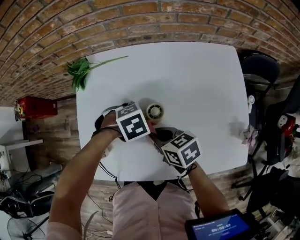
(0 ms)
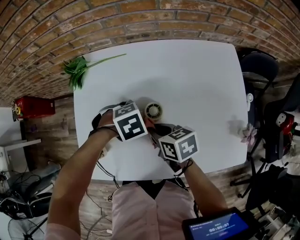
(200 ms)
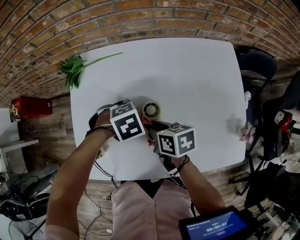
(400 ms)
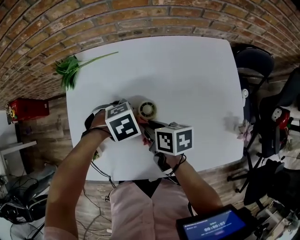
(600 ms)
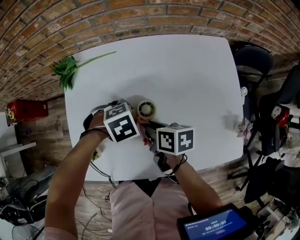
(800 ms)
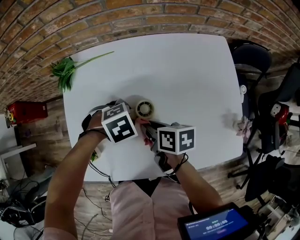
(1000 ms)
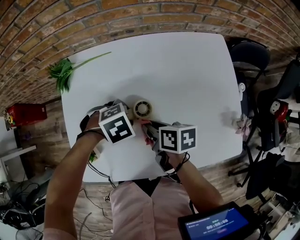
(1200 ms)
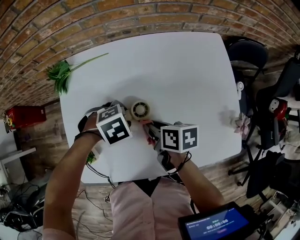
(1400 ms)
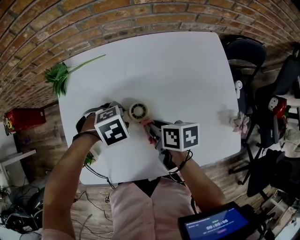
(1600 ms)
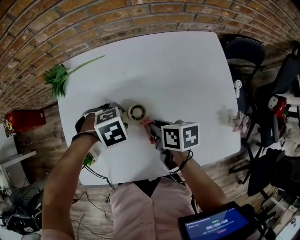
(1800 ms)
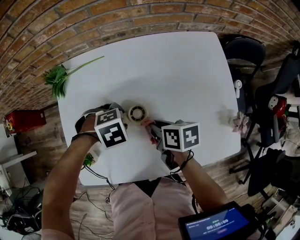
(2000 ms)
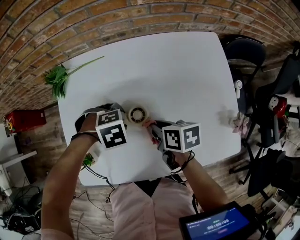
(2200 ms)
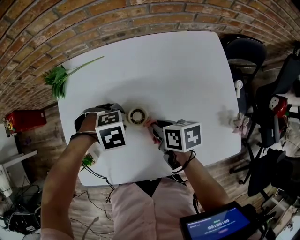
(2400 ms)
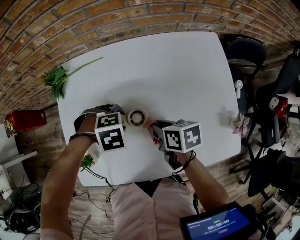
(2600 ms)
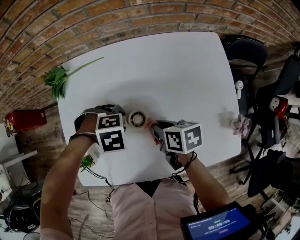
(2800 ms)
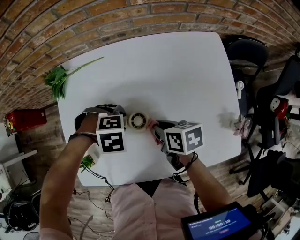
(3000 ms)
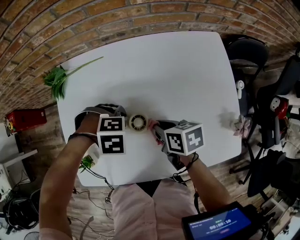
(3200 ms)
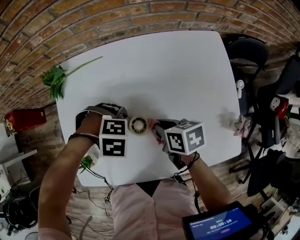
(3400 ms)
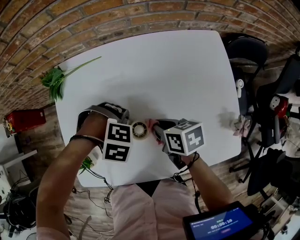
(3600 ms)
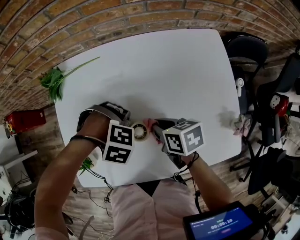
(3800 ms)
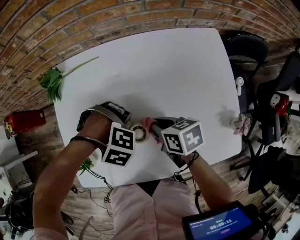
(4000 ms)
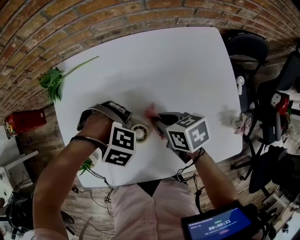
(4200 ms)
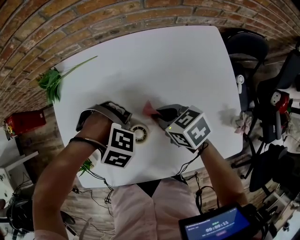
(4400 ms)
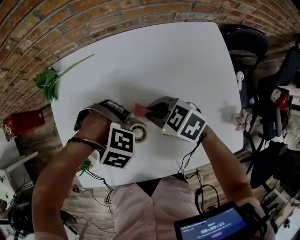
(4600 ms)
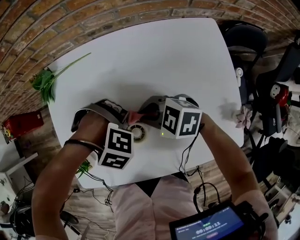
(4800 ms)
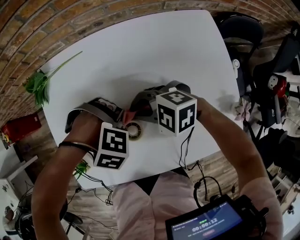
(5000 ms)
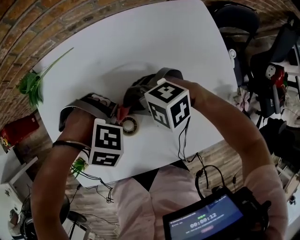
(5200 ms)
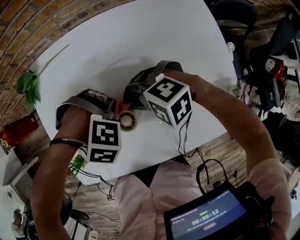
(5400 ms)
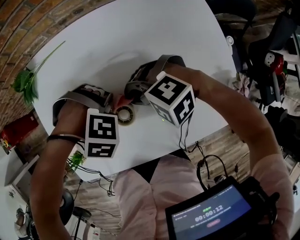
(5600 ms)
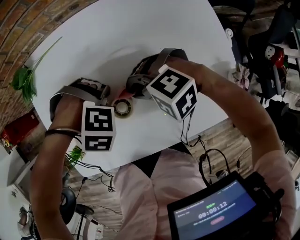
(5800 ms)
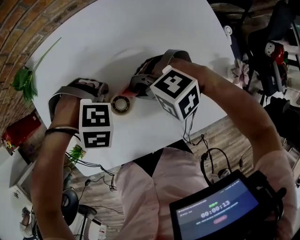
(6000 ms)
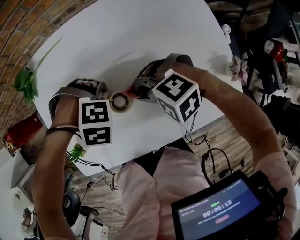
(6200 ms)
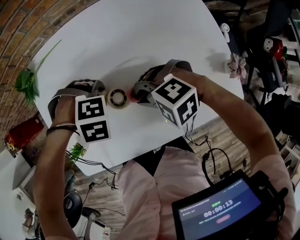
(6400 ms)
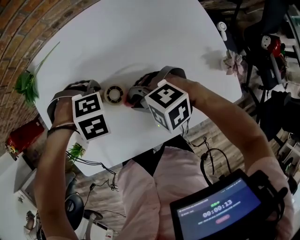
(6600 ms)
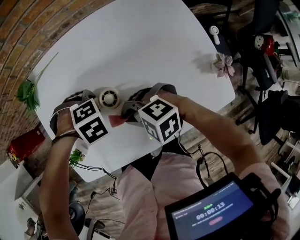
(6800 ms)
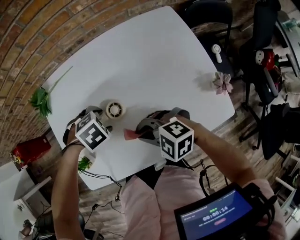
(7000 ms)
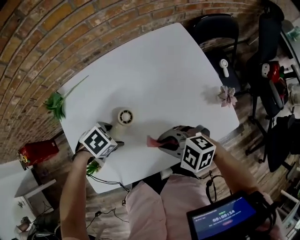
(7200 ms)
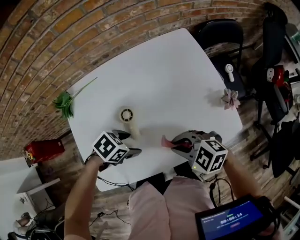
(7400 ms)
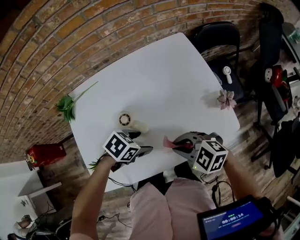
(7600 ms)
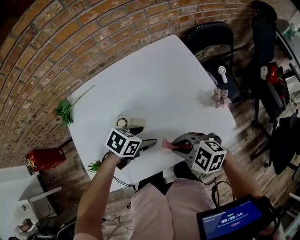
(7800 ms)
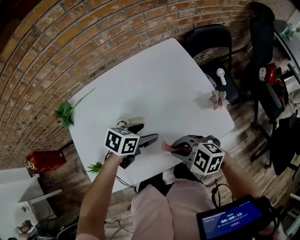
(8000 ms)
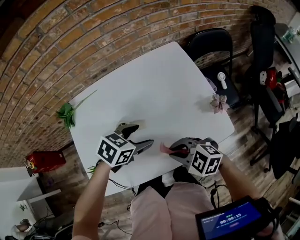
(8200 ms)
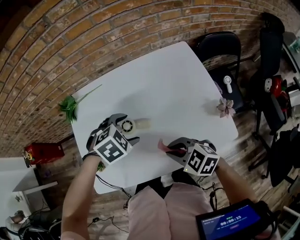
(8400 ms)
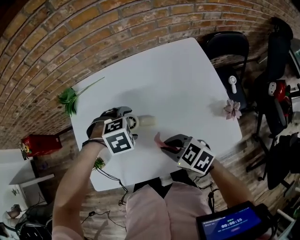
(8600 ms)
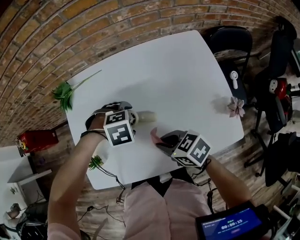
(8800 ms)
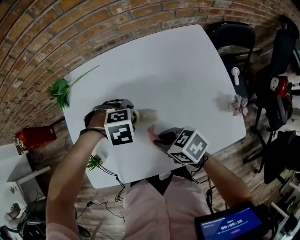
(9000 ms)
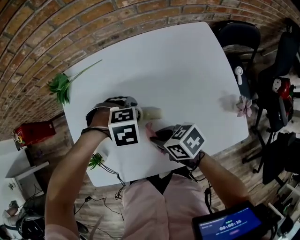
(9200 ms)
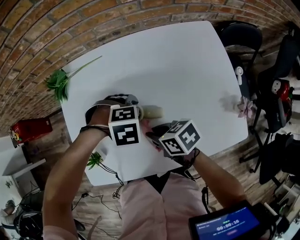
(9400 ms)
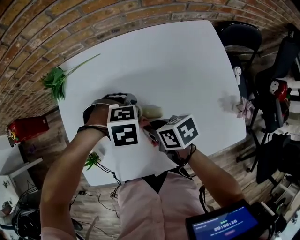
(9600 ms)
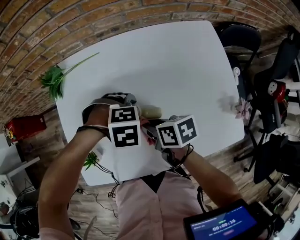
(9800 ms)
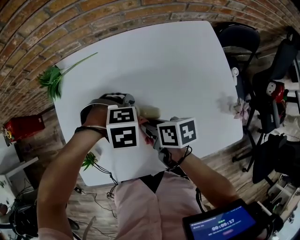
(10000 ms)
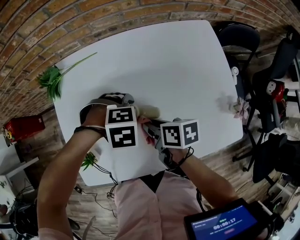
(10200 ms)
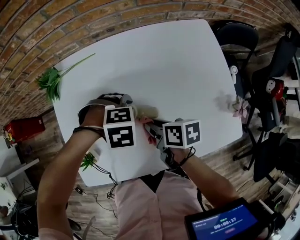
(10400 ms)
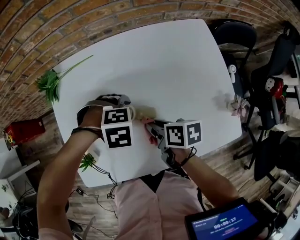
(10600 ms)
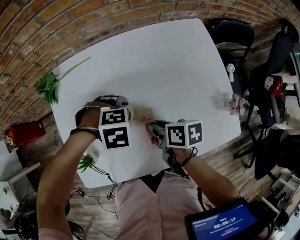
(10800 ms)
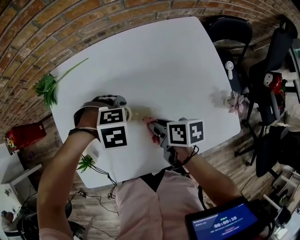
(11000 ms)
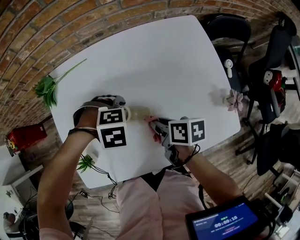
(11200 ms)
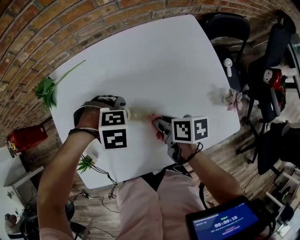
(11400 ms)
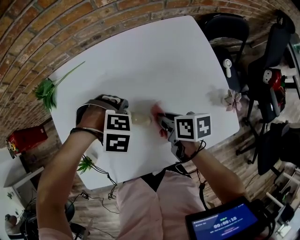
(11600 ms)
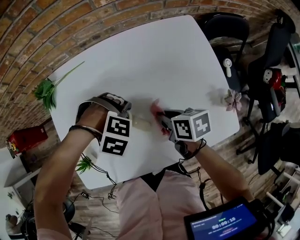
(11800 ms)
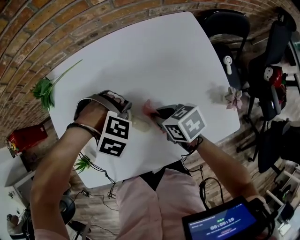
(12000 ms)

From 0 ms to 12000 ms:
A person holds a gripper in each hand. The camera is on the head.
From 0 ms to 1600 ms: The right gripper changes place by about 5 cm, and rotates some 30 degrees.
From 1600 ms to 3000 ms: There are only small adjustments of the grippers.
From 3000 ms to 4400 ms: The left gripper swivels approximately 30 degrees; the right gripper swivels approximately 30 degrees.
From 4400 ms to 6000 ms: The right gripper ends up approximately 5 cm from where it was, and twists roughly 70 degrees counterclockwise, seen from behind.
From 6000 ms to 7600 ms: The right gripper shifts by roughly 15 cm, and turns by approximately 40 degrees. The left gripper shifts by about 10 cm, rotates around the line of its fingers by about 60 degrees, counterclockwise from behind, and opens its fingers.
From 7600 ms to 9000 ms: The right gripper ends up roughly 10 cm from where it was, and rotates roughly 40 degrees, while the left gripper moves roughly 5 cm upward and comes back, and swivels roughly 50 degrees.
From 9000 ms to 10400 ms: The right gripper ends up roughly 5 cm from where it was, and changes its angle by about 40 degrees.
From 10400 ms to 12000 ms: The right gripper shifts by approximately 5 cm, and turns by some 30 degrees; the left gripper changes its angle by roughly 30 degrees.

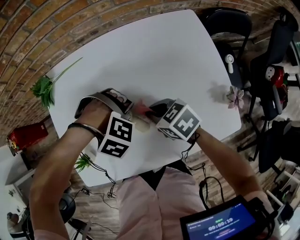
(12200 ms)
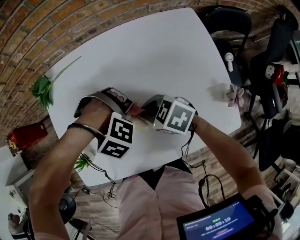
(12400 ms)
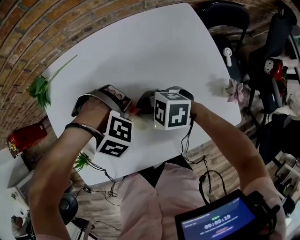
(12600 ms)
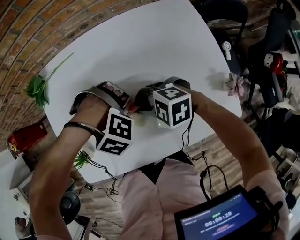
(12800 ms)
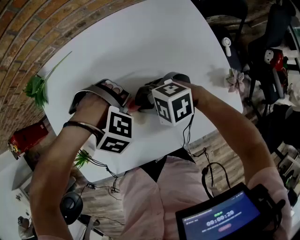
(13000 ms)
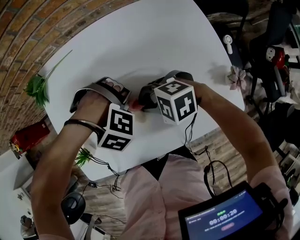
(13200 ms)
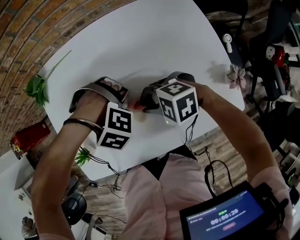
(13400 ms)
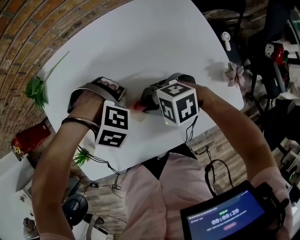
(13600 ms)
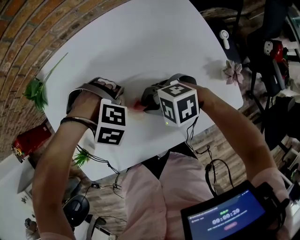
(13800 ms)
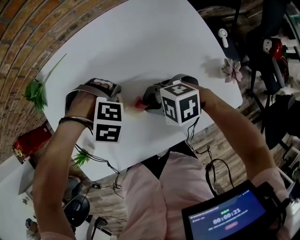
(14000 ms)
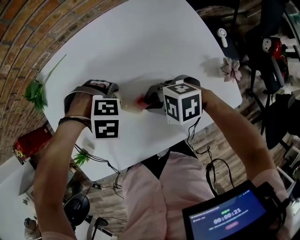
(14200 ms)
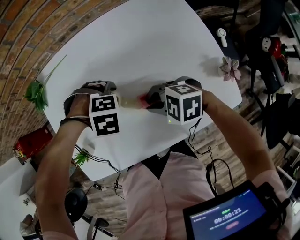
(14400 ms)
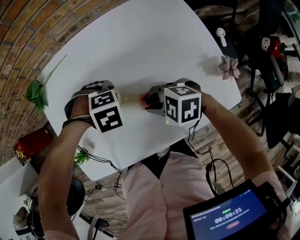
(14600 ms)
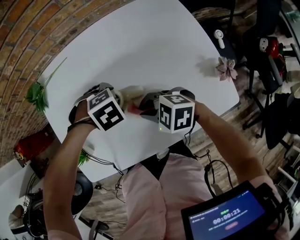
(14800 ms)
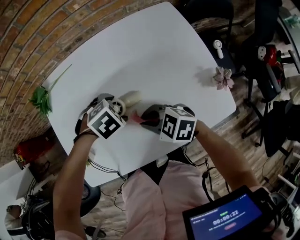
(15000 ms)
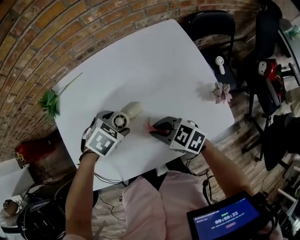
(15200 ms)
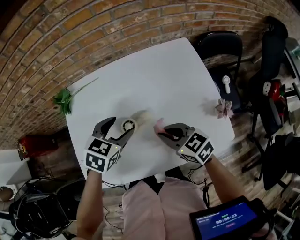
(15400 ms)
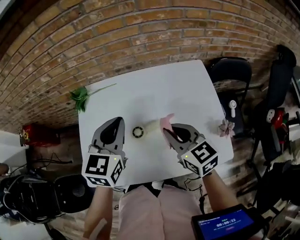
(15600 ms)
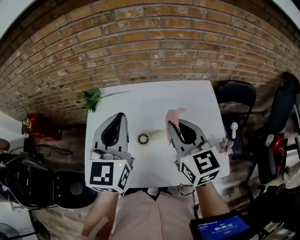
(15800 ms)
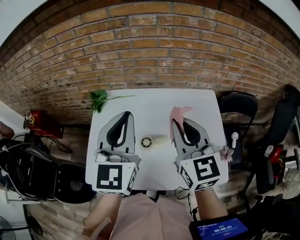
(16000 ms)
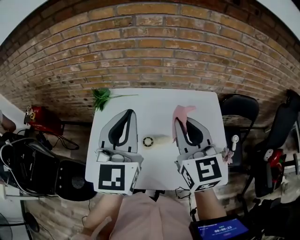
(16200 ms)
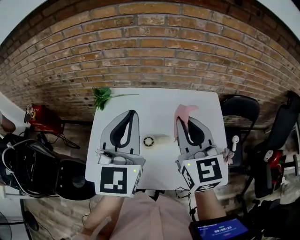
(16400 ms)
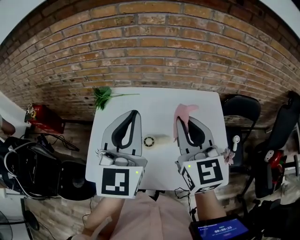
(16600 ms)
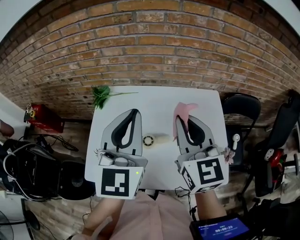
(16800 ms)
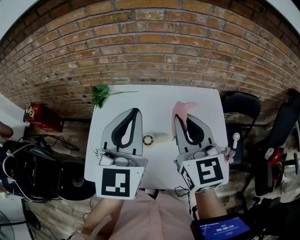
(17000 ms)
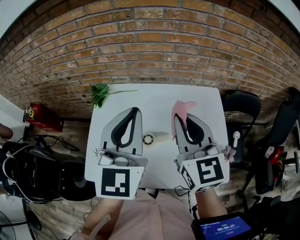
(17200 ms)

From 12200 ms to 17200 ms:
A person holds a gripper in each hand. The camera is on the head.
From 12200 ms to 13800 ms: The right gripper changes place by approximately 5 cm, and rolls counterclockwise, seen from behind, by about 50 degrees.
From 13800 ms to 15600 ms: The right gripper goes some 15 cm upward, and changes its angle by some 60 degrees; the left gripper travels upward by about 25 cm, tilts its fingers some 70 degrees upward, and closes its fingers.
From 15600 ms to 17200 ms: Both grippers travel together upward, approximately 15 cm. The left gripper swivels about 30 degrees; the right gripper turns by some 20 degrees.

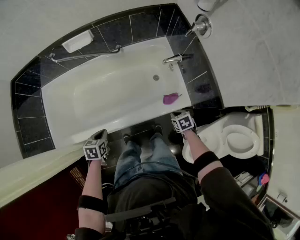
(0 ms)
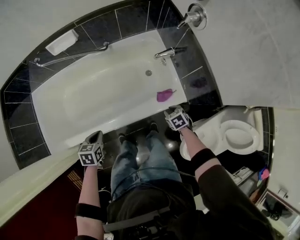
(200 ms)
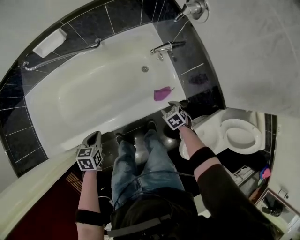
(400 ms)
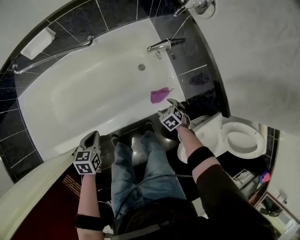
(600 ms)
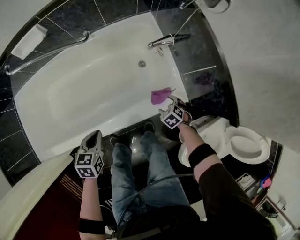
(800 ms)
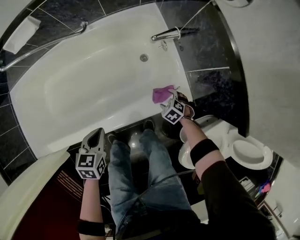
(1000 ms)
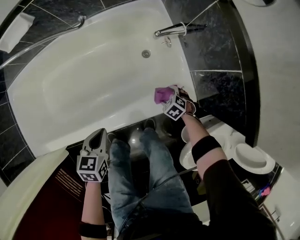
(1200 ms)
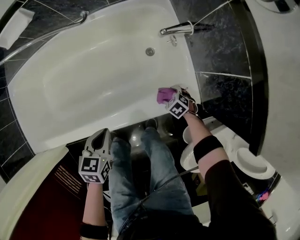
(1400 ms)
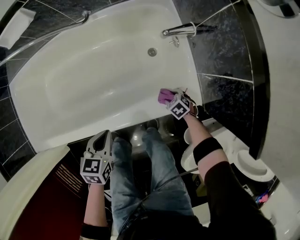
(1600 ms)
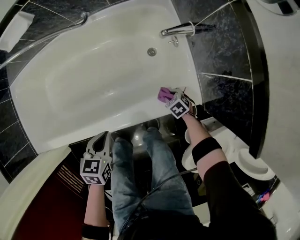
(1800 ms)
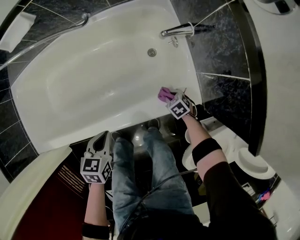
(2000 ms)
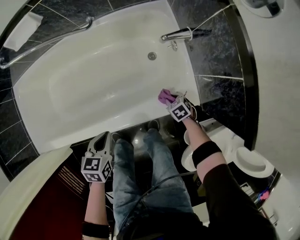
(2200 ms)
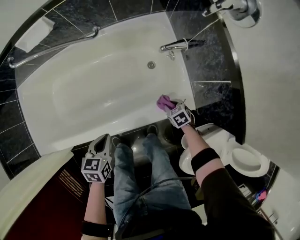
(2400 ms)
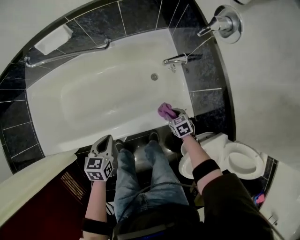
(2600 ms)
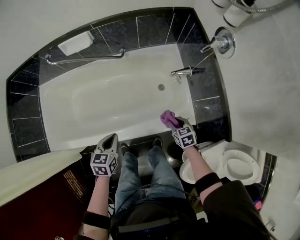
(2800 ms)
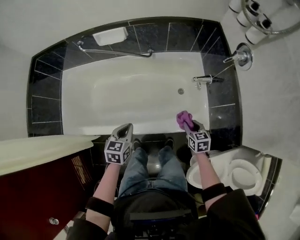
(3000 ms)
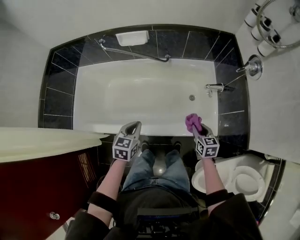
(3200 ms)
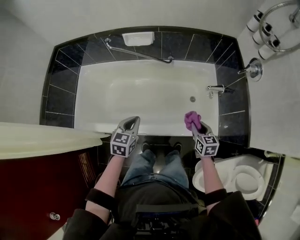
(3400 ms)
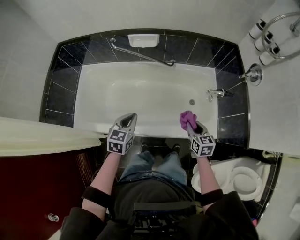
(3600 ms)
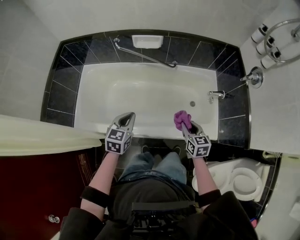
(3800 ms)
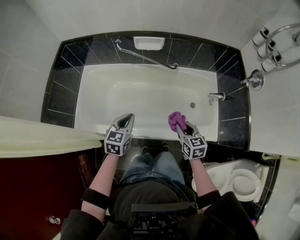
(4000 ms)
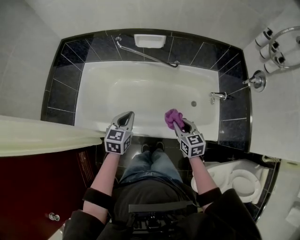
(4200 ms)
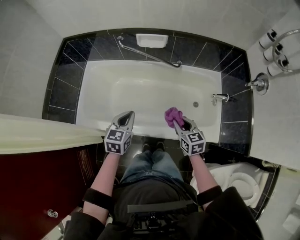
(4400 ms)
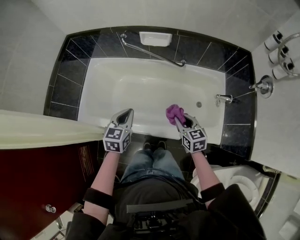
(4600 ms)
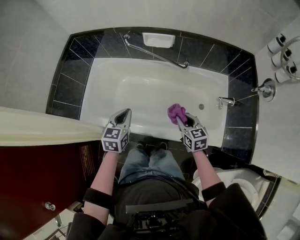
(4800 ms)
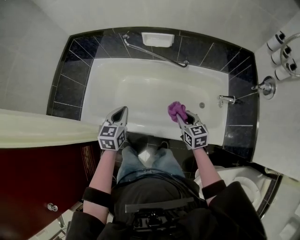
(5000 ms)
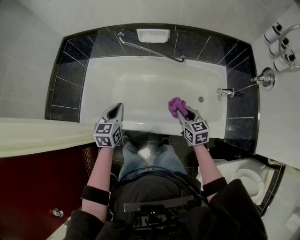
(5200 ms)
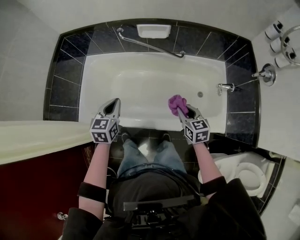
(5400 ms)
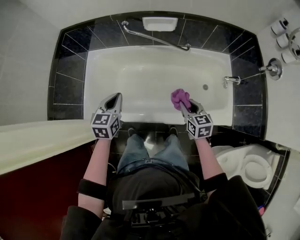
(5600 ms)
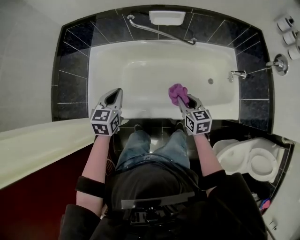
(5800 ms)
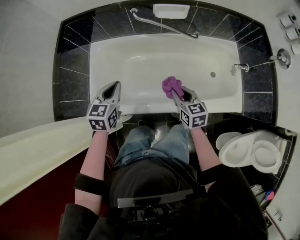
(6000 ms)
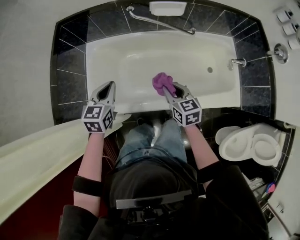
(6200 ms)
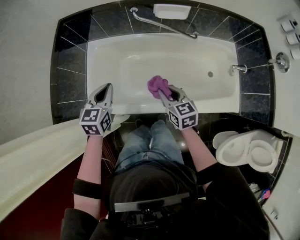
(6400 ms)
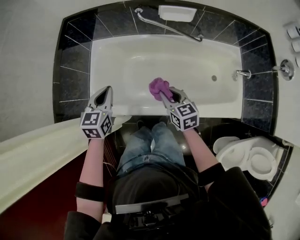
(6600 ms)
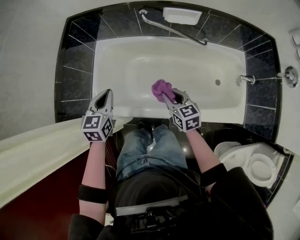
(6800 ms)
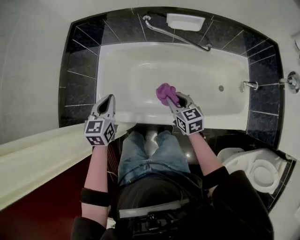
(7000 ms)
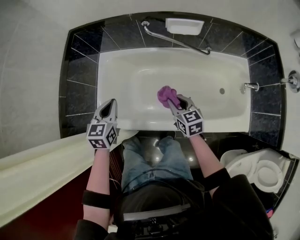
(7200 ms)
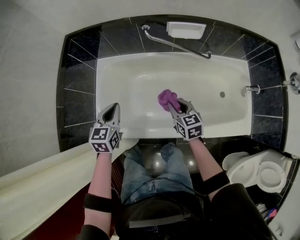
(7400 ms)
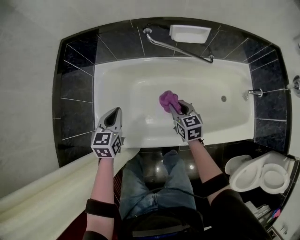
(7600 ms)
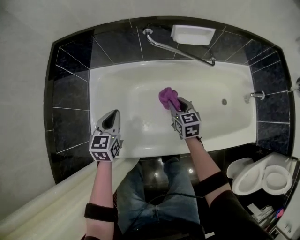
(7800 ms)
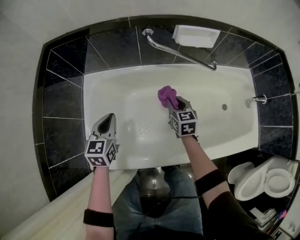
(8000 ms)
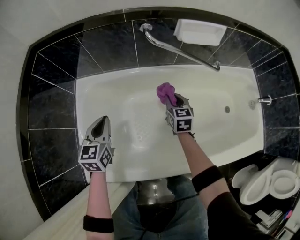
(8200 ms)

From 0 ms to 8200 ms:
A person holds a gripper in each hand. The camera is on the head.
From 0 ms to 1600 ms: The left gripper moves roughly 25 cm; the right gripper travels downward by some 35 cm, swivels approximately 30 degrees, and opens.
From 1600 ms to 3200 ms: The right gripper goes approximately 40 cm upward, tilts its fingers roughly 30 degrees upward, and closes its fingers, while the left gripper is displaced upward by roughly 25 cm.
From 3200 ms to 5000 ms: The left gripper goes some 20 cm to the left, upward and forward; the right gripper moves to the left and forward, approximately 20 cm.
From 5000 ms to 6600 ms: The two grippers go roughly 25 cm to the left.
From 6600 ms to 8200 ms: The two grippers go roughly 40 cm downward and forward. The right gripper rotates about 20 degrees.
